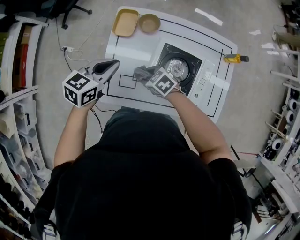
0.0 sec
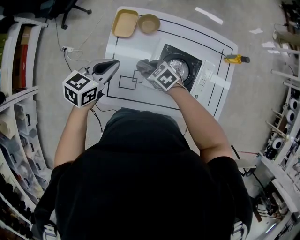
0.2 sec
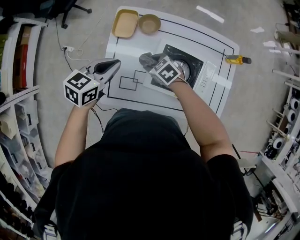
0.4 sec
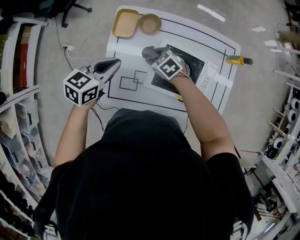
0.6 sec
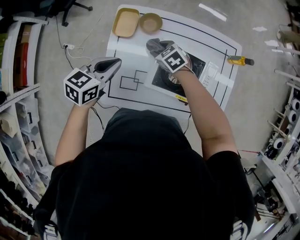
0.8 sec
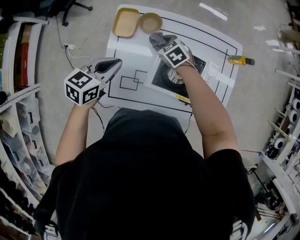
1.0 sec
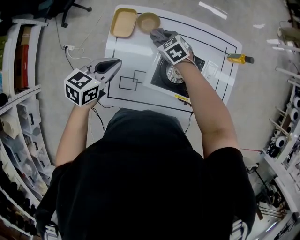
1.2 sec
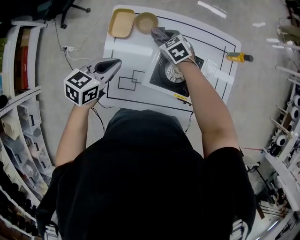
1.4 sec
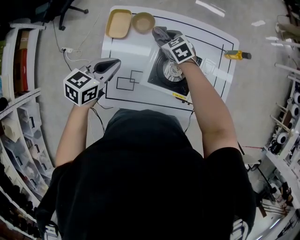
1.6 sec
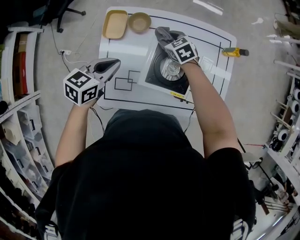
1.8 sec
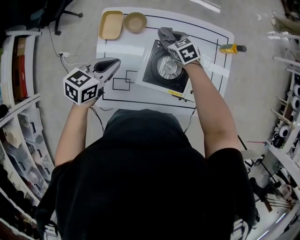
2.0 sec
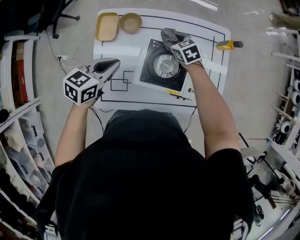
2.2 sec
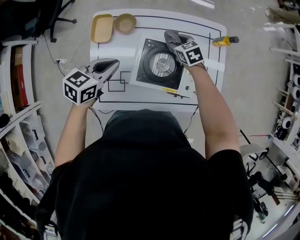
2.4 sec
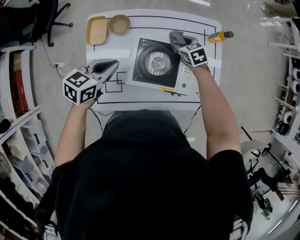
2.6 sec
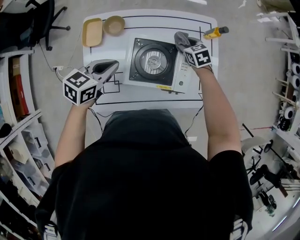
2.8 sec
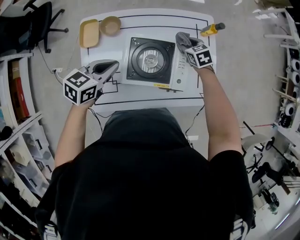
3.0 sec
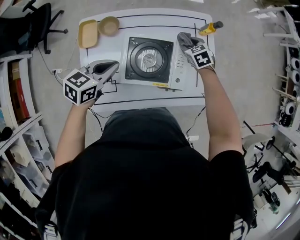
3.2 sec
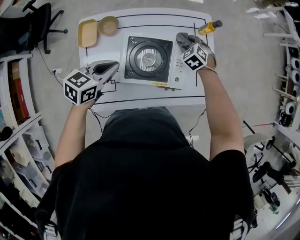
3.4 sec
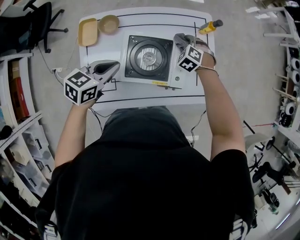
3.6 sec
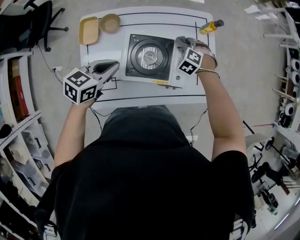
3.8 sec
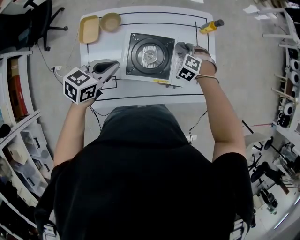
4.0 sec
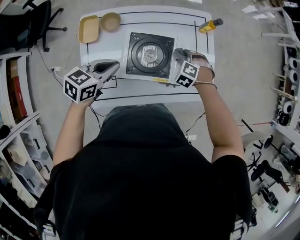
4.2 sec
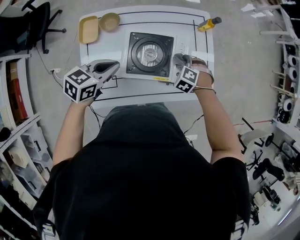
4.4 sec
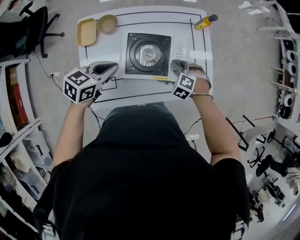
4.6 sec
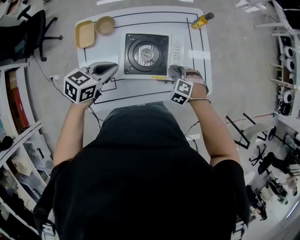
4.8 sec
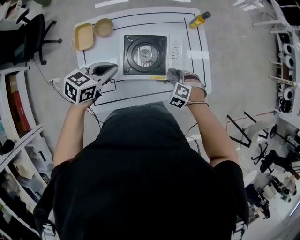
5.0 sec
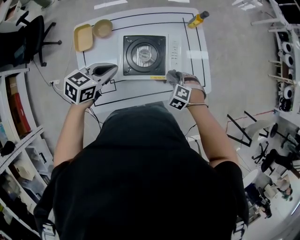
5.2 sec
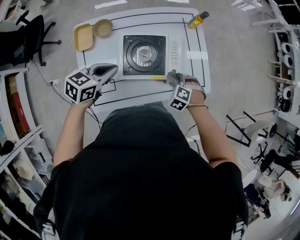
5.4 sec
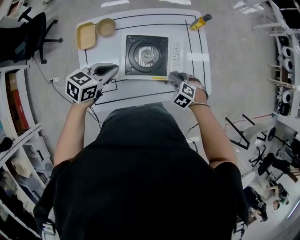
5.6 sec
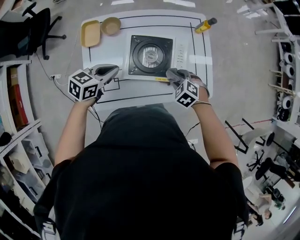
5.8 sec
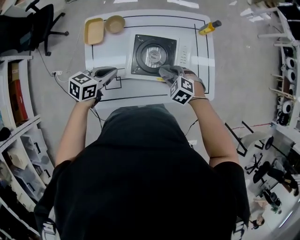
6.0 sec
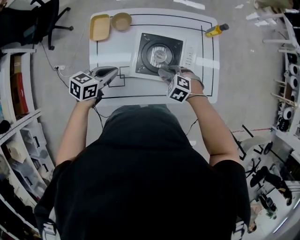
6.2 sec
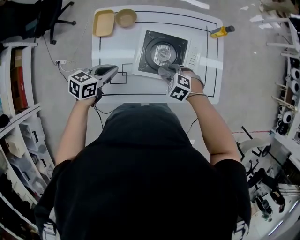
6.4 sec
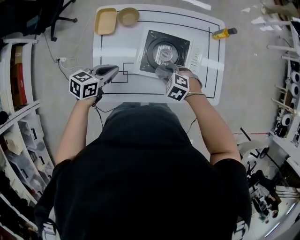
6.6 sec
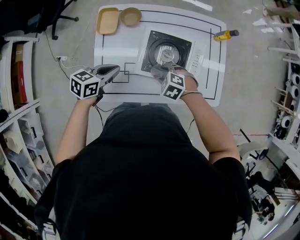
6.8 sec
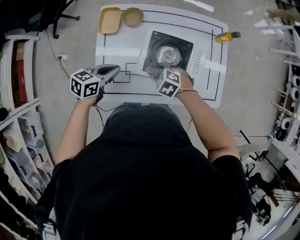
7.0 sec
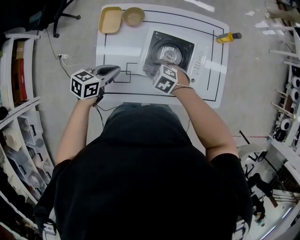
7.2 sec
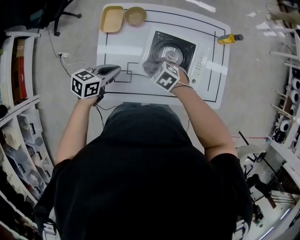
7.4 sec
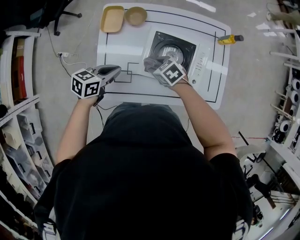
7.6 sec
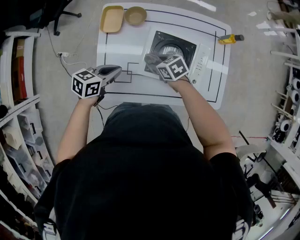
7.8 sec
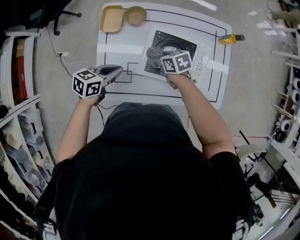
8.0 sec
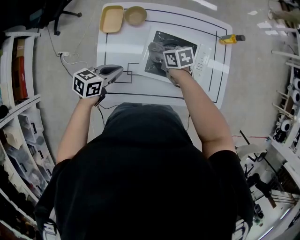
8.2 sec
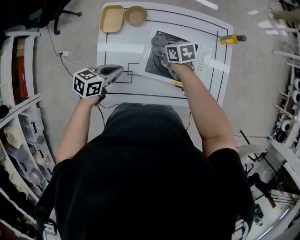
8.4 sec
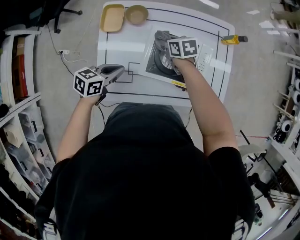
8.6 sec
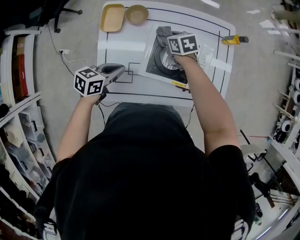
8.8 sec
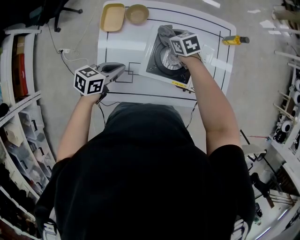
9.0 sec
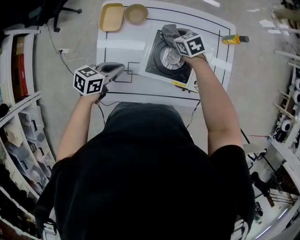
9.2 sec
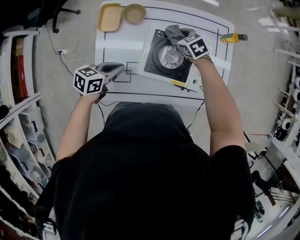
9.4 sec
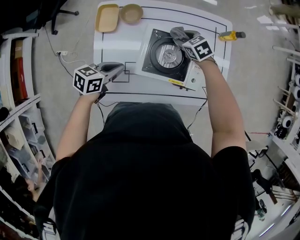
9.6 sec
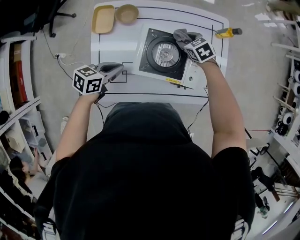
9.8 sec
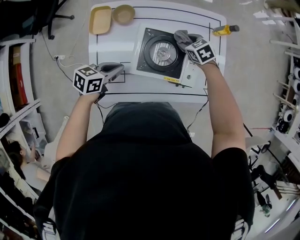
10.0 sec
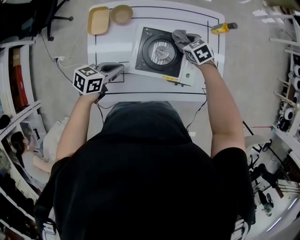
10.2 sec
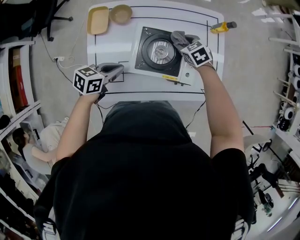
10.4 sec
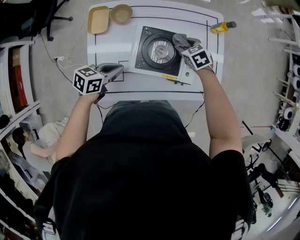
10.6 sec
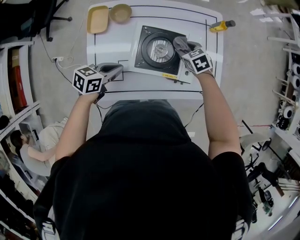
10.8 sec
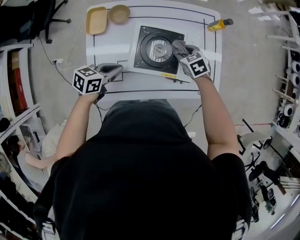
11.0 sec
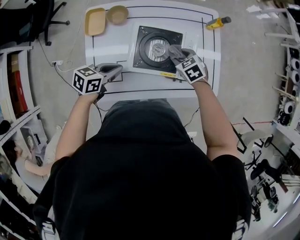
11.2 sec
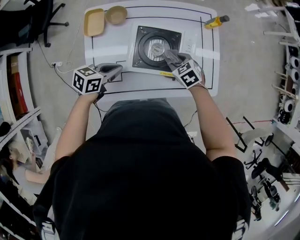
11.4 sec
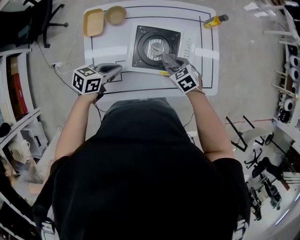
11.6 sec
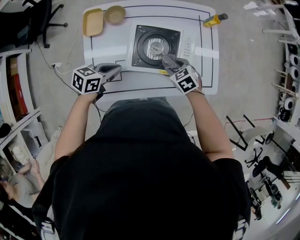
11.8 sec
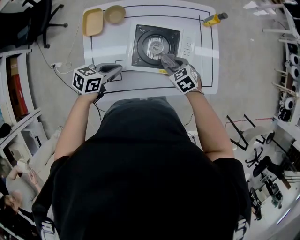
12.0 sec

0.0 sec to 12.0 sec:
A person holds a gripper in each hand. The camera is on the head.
0.0 sec to 1.6 sec: The right gripper moves approximately 25 cm, and swivels some 20 degrees. The left gripper ends up about 5 cm from where it was.
1.6 sec to 3.0 sec: The left gripper travels to the right by roughly 10 cm; the right gripper goes approximately 25 cm to the right, and swivels about 20 degrees.
3.0 sec to 4.4 sec: The right gripper moves backward and to the right, some 15 cm, and rolls counterclockwise, seen from behind, by about 40 degrees.
4.4 sec to 6.0 sec: The right gripper ends up about 10 cm from where it was. Meanwhile the left gripper moves some 5 cm.
6.0 sec to 7.6 sec: The right gripper ends up approximately 15 cm from where it was, and rotates about 30 degrees, while the left gripper shifts by about 5 cm.
7.6 sec to 9.0 sec: The right gripper moves approximately 15 cm.
9.0 sec to 10.4 sec: The right gripper travels to the right by approximately 15 cm; the left gripper heads to the right, covering approximately 5 cm.
10.4 sec to 12.0 sec: The right gripper heads backward, covering roughly 15 cm.

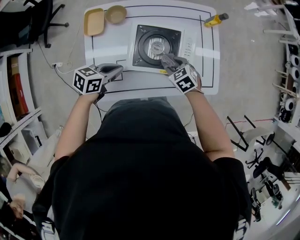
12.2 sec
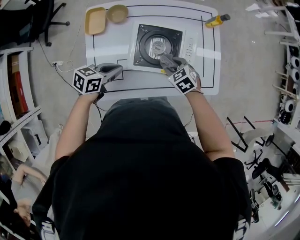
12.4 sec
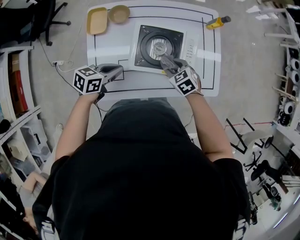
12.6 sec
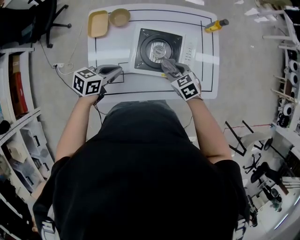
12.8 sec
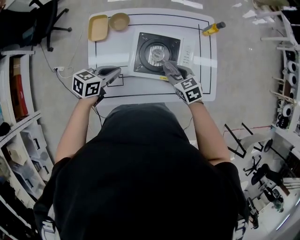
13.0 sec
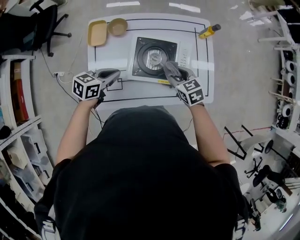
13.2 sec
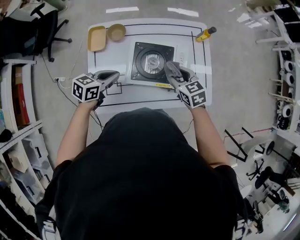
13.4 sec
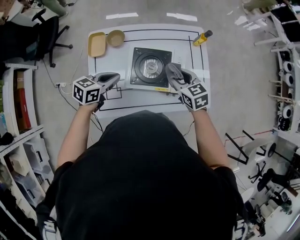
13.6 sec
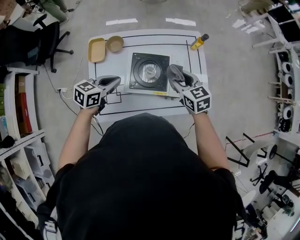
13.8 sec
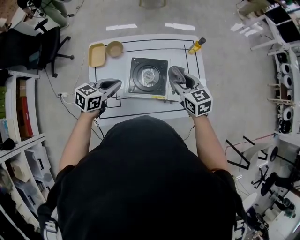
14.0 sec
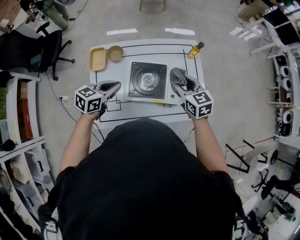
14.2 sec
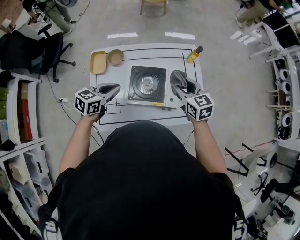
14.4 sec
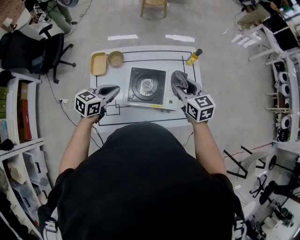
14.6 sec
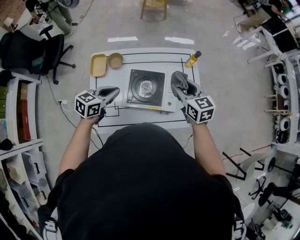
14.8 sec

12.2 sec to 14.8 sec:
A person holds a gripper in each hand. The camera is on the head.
12.2 sec to 13.4 sec: The right gripper heads upward, covering some 15 cm, and rotates about 20 degrees, while the left gripper travels upward by about 5 cm.
13.4 sec to 14.8 sec: The right gripper moves upward and to the right, some 15 cm; the left gripper shifts roughly 10 cm upward.

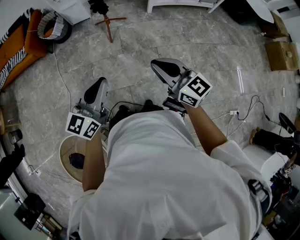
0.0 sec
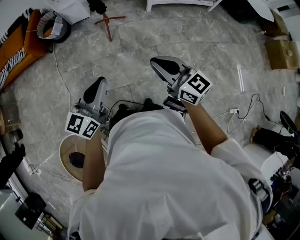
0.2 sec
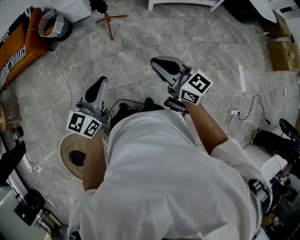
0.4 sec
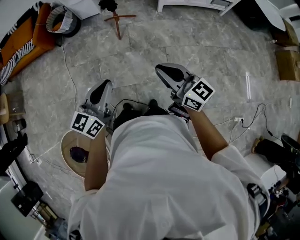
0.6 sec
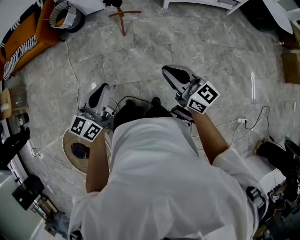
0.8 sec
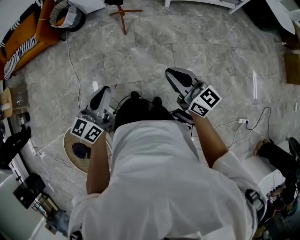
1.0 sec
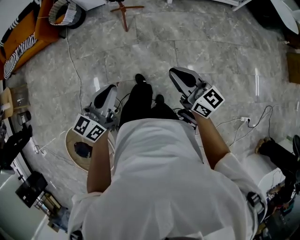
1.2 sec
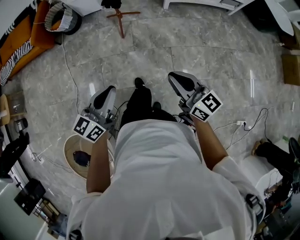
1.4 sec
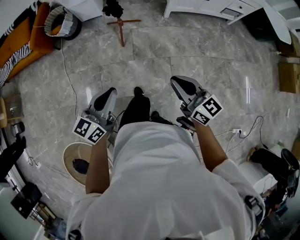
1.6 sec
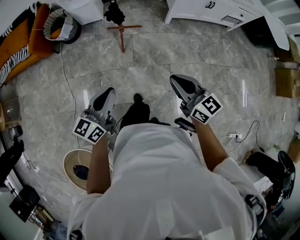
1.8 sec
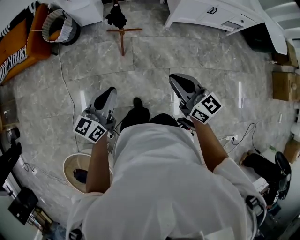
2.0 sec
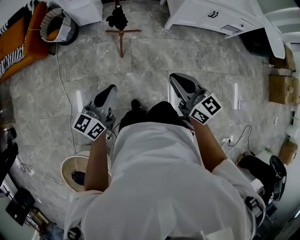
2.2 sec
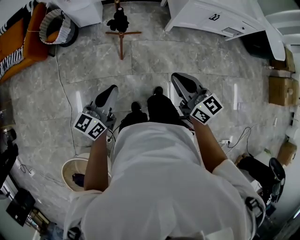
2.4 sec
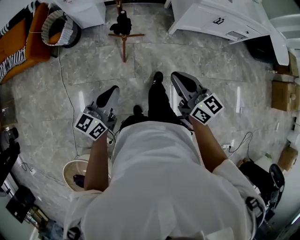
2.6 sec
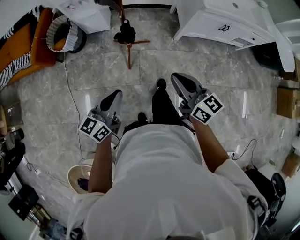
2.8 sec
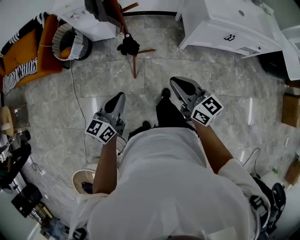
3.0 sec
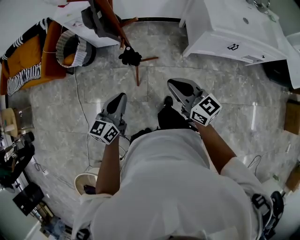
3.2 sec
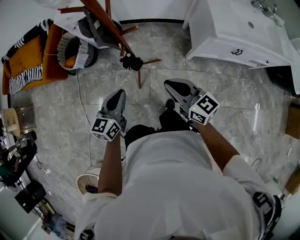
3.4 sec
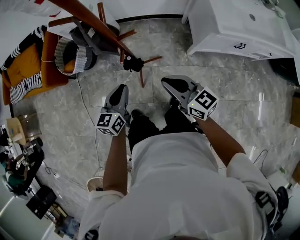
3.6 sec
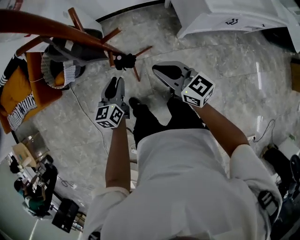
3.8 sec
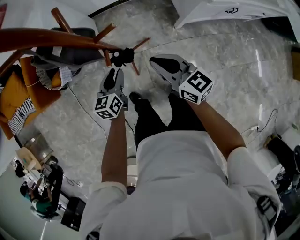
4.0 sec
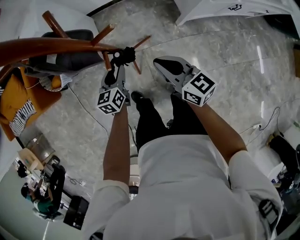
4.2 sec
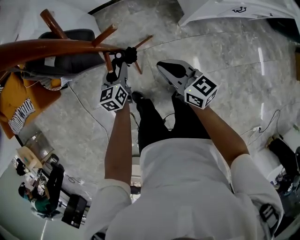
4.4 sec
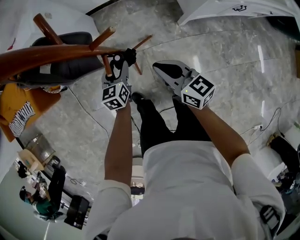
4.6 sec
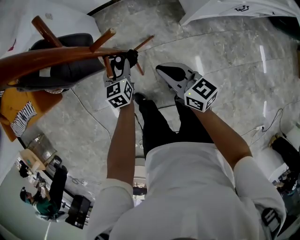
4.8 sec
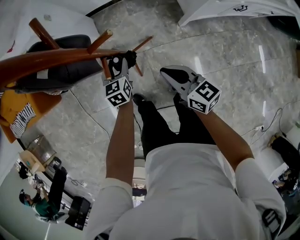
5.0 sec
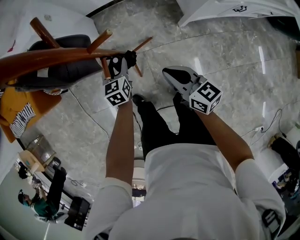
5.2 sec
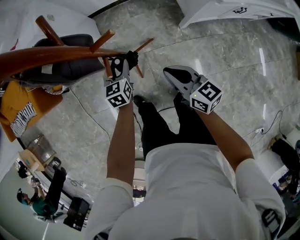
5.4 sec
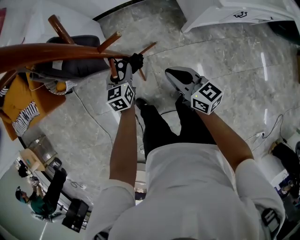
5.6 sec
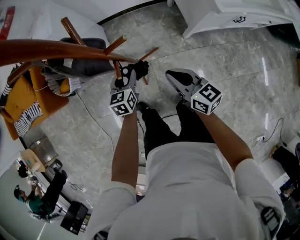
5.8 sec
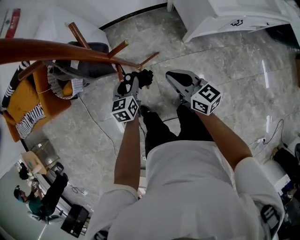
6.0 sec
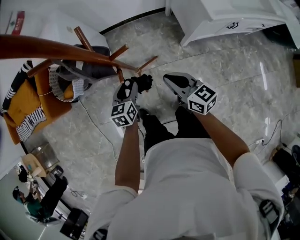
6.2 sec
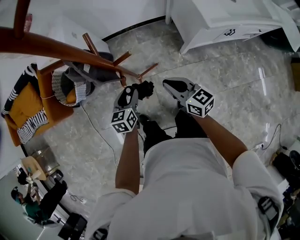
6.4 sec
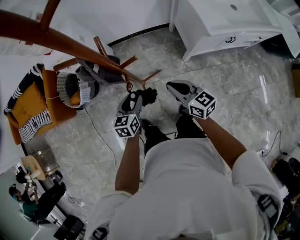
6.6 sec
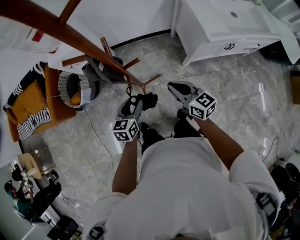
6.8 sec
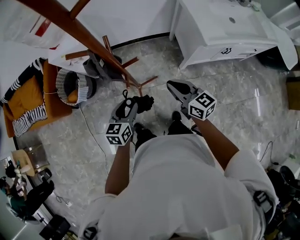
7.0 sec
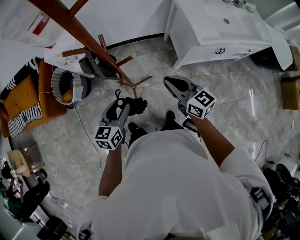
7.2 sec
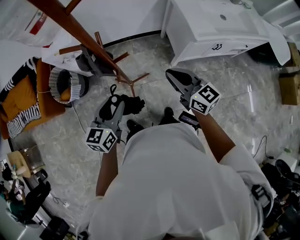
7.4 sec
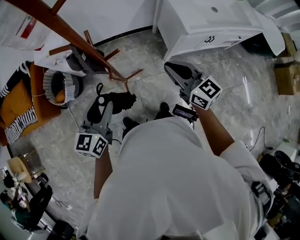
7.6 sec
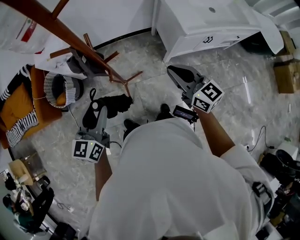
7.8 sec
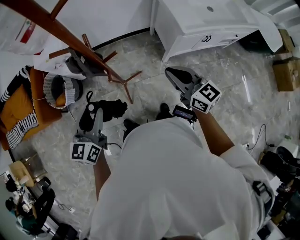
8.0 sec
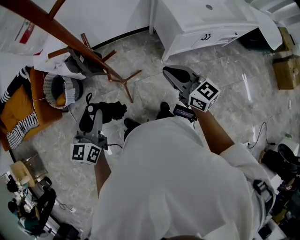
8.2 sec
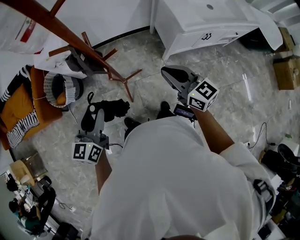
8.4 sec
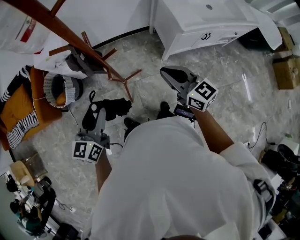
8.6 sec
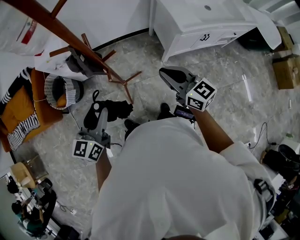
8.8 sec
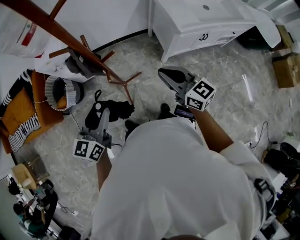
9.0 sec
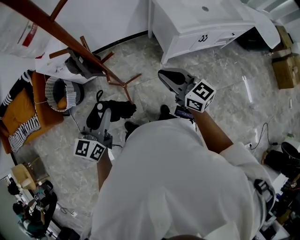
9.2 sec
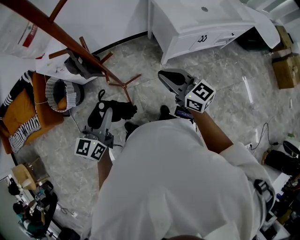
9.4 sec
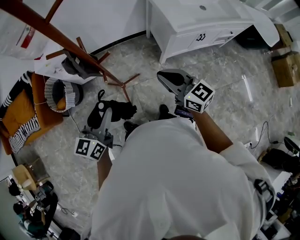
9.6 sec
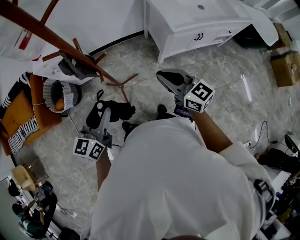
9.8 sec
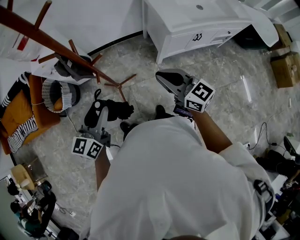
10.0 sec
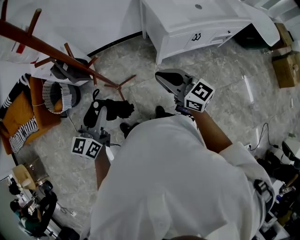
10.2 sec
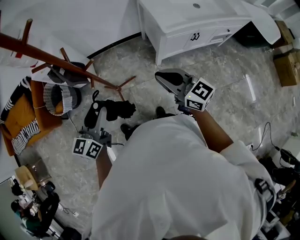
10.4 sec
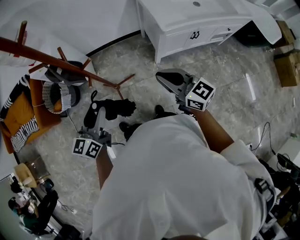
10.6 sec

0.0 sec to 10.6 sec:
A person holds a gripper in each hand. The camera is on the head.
0.0 sec to 1.6 sec: The grippers both shift forward and downward by roughly 15 cm.
1.6 sec to 3.0 sec: Both grippers move forward, approximately 35 cm.
3.0 sec to 4.6 sec: Both grippers travel together forward and downward, approximately 35 cm. The left gripper swivels about 30 degrees, and opens.
4.6 sec to 6.0 sec: The left gripper goes approximately 5 cm upward. Meanwhile the right gripper moves some 5 cm.
6.0 sec to 7.6 sec: Both grippers move upward, about 25 cm. The left gripper swivels roughly 20 degrees.
7.6 sec to 9.0 sec: The grippers make only small movements.
9.0 sec to 10.6 sec: Both grippers move to the right, some 10 cm.
